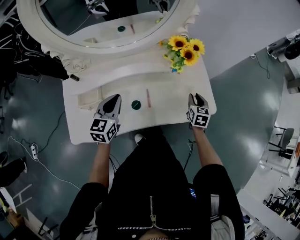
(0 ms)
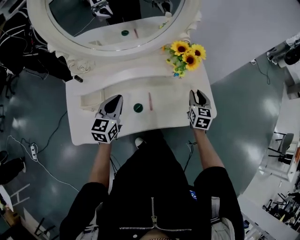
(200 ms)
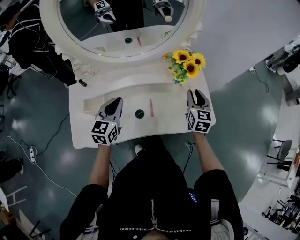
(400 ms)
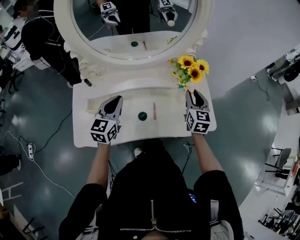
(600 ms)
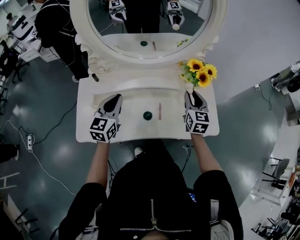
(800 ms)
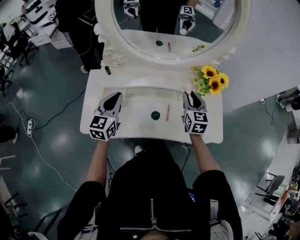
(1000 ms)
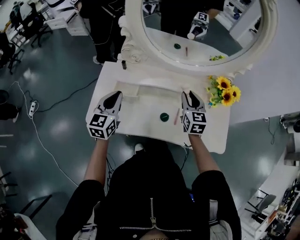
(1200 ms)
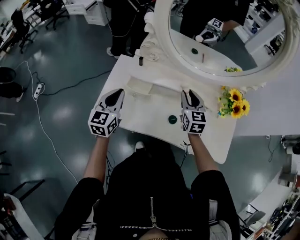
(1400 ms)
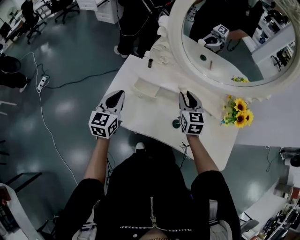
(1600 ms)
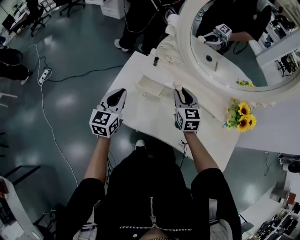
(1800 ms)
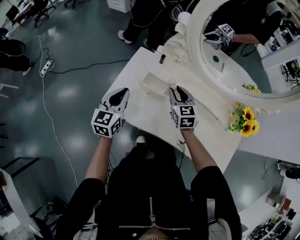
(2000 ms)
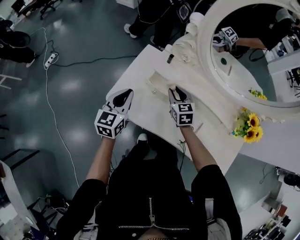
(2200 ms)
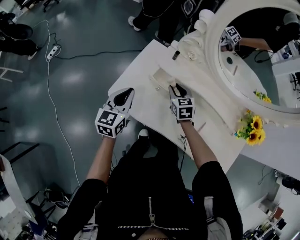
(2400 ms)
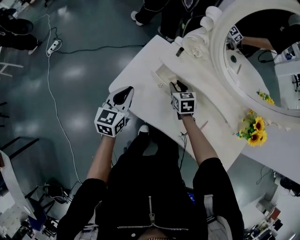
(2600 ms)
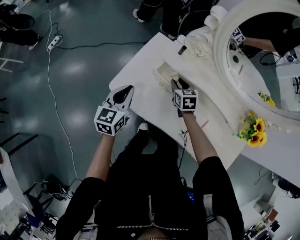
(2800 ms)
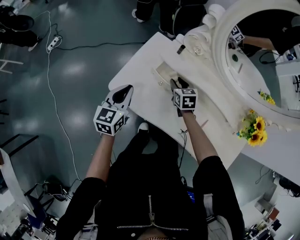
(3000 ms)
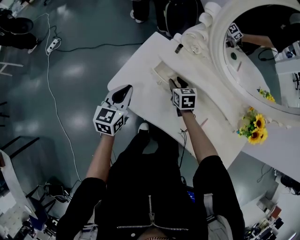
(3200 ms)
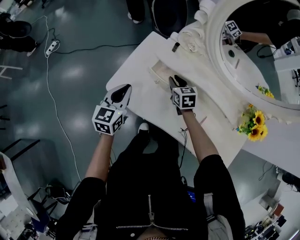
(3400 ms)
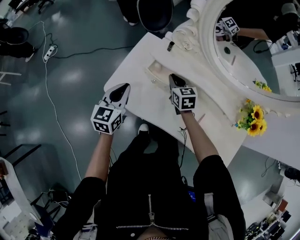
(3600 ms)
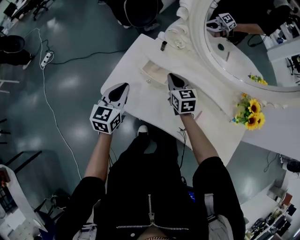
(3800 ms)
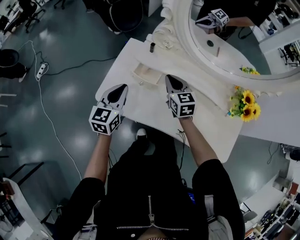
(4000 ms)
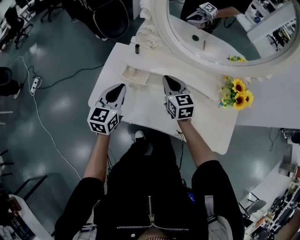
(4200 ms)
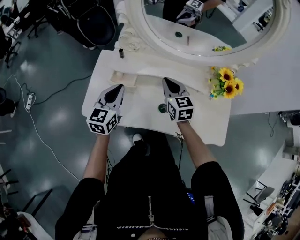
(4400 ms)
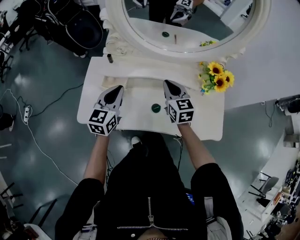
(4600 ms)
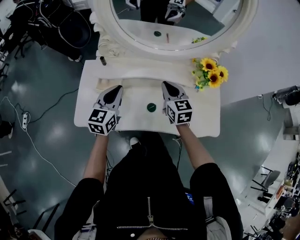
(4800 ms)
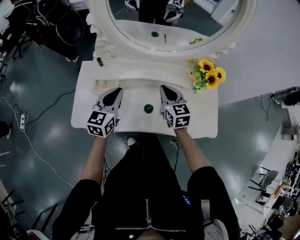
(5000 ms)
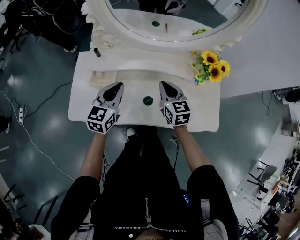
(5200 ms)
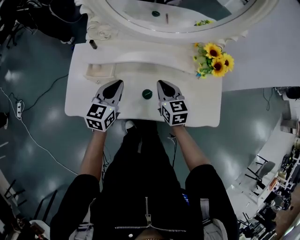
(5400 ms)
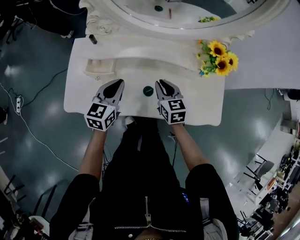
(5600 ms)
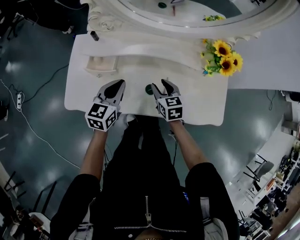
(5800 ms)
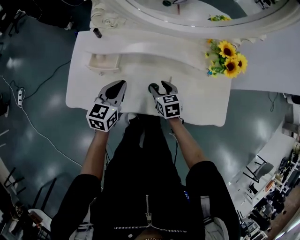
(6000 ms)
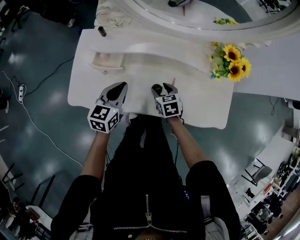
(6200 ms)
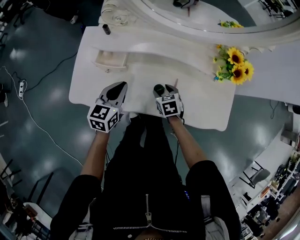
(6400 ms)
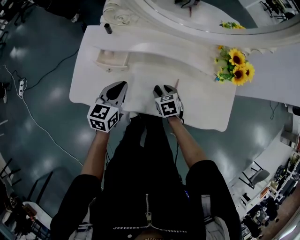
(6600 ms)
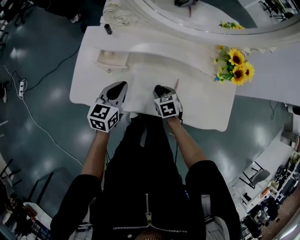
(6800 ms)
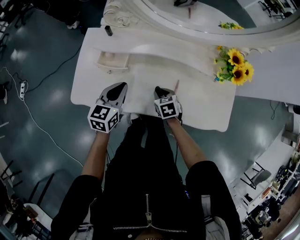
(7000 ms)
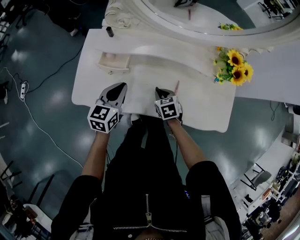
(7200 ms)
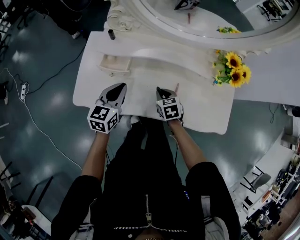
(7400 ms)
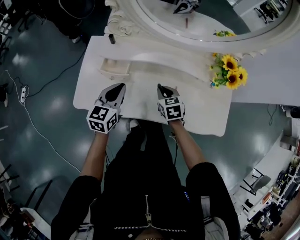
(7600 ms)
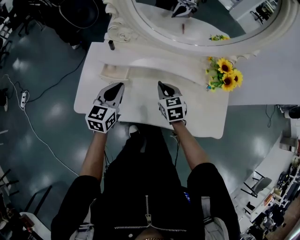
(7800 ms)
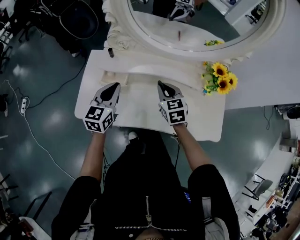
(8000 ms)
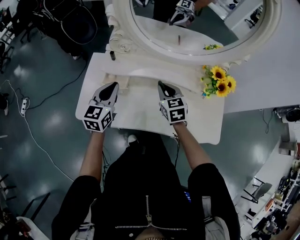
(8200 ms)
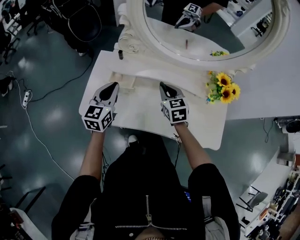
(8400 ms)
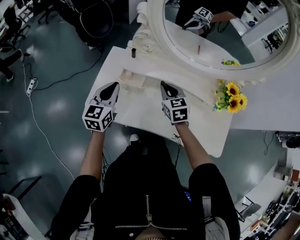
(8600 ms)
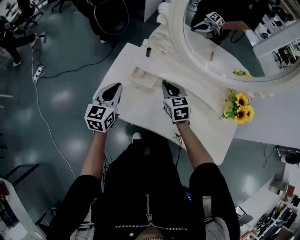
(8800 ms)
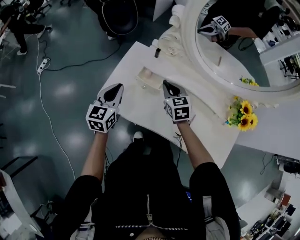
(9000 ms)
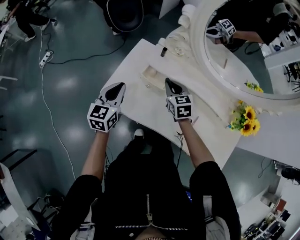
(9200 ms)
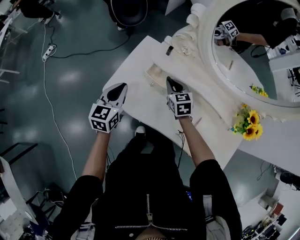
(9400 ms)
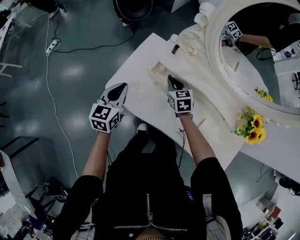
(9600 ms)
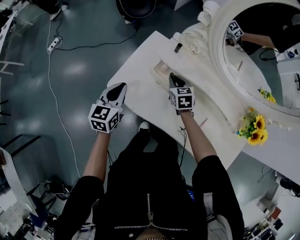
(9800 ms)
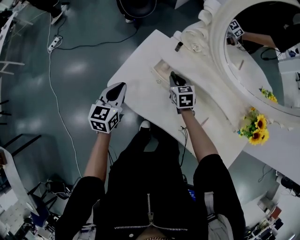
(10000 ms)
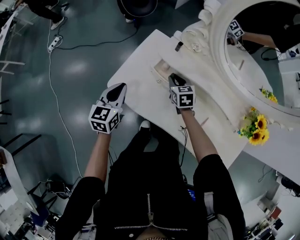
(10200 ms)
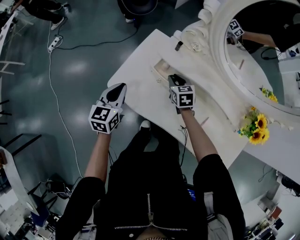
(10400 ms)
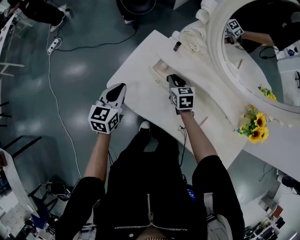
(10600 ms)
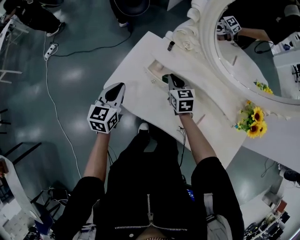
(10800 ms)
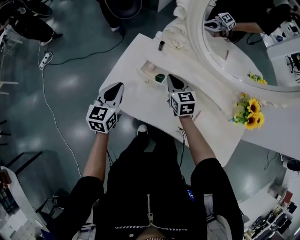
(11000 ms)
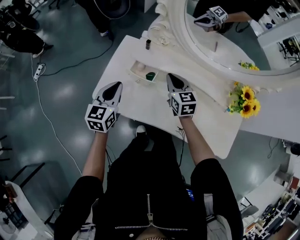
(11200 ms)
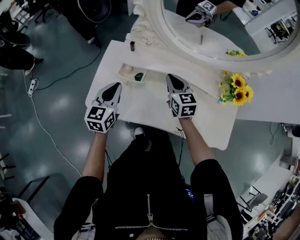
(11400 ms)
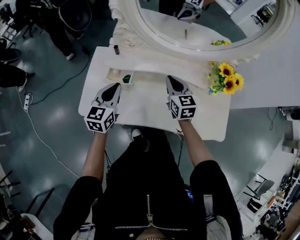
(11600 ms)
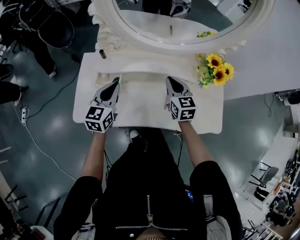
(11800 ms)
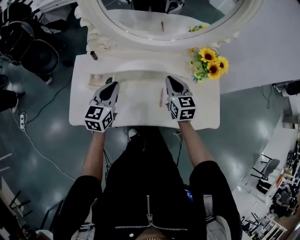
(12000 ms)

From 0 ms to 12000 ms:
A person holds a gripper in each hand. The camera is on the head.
From 0 ms to 1600 ms: The right gripper moves some 40 cm, and turns by about 50 degrees. The left gripper ends up approximately 25 cm from where it was, and turns by some 30 degrees.
From 1600 ms to 3000 ms: The right gripper heads downward, to the left and forward, covering about 20 cm, and changes its angle by approximately 30 degrees, while the left gripper heads downward and to the left, covering approximately 10 cm.
From 3000 ms to 4400 ms: The left gripper heads to the right and upward, covering some 15 cm, and swivels about 20 degrees, while the right gripper moves upward, to the right and backward, some 25 cm, swivels roughly 30 degrees, and closes.
From 4400 ms to 6000 ms: The left gripper is displaced downward and to the right by some 10 cm; the right gripper is displaced downward and backward by some 20 cm, swivels about 30 degrees, and opens.
From 6000 ms to 7600 ms: The left gripper moves roughly 5 cm. The right gripper closes.
From 7600 ms to 9000 ms: The right gripper is displaced to the left, upward and forward by some 20 cm, and changes its angle by about 20 degrees. The left gripper is displaced to the left by some 15 cm, and rotates about 20 degrees.
From 9000 ms to 10400 ms: The left gripper shifts by approximately 5 cm. The right gripper goes about 10 cm downward.
From 10400 ms to 12000 ms: The left gripper ends up approximately 25 cm from where it was, and rotates approximately 30 degrees; the right gripper shifts by approximately 35 cm, and rotates about 40 degrees.

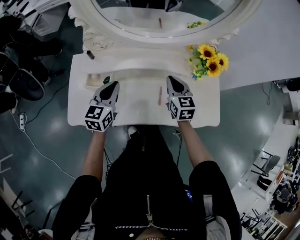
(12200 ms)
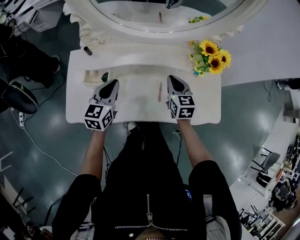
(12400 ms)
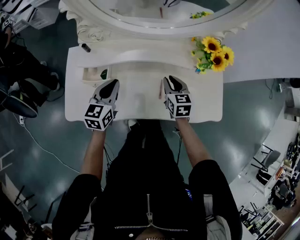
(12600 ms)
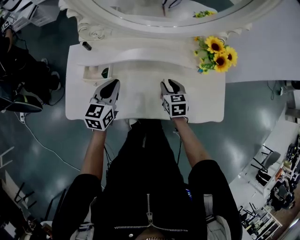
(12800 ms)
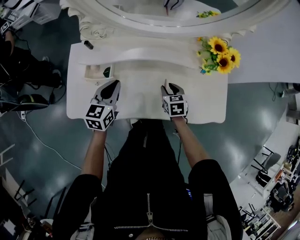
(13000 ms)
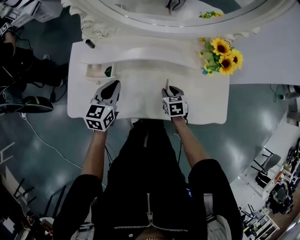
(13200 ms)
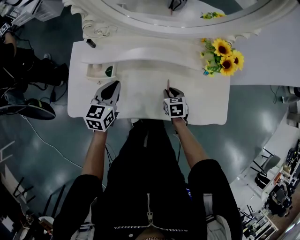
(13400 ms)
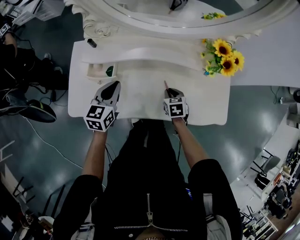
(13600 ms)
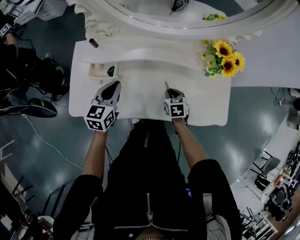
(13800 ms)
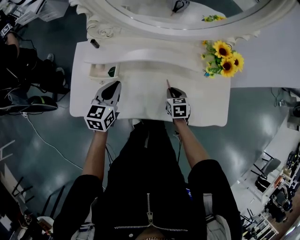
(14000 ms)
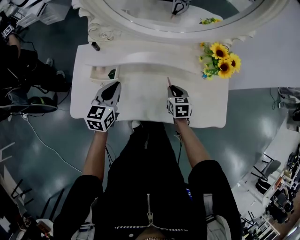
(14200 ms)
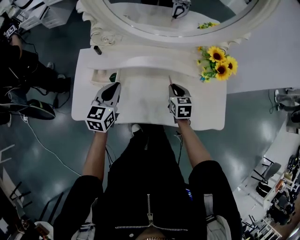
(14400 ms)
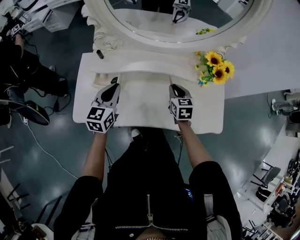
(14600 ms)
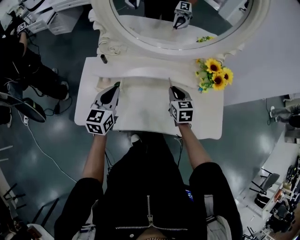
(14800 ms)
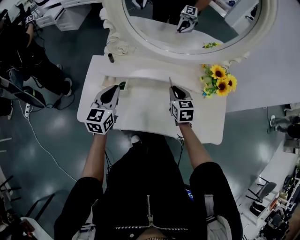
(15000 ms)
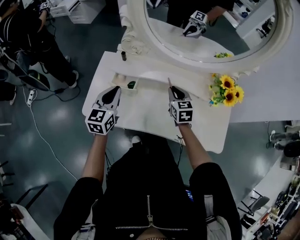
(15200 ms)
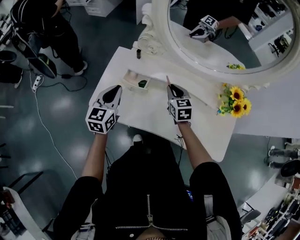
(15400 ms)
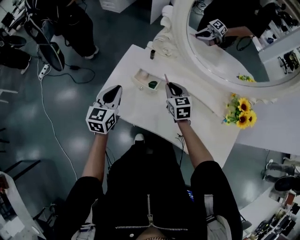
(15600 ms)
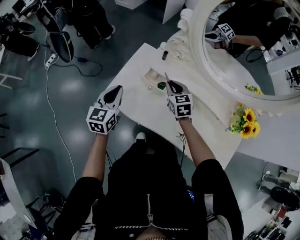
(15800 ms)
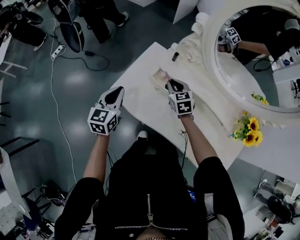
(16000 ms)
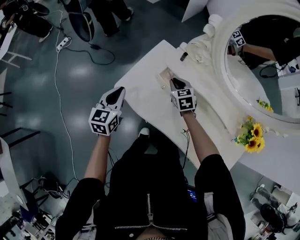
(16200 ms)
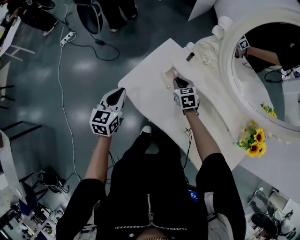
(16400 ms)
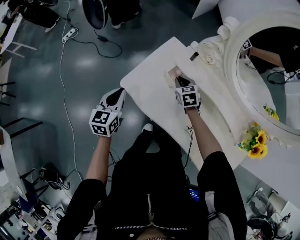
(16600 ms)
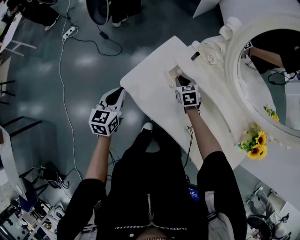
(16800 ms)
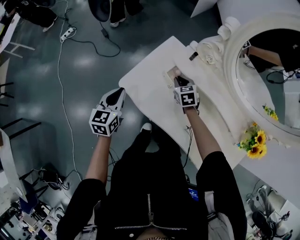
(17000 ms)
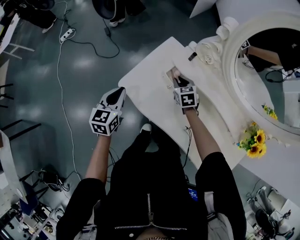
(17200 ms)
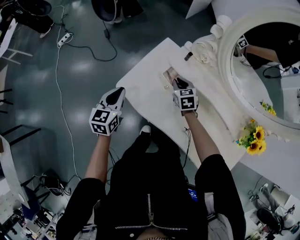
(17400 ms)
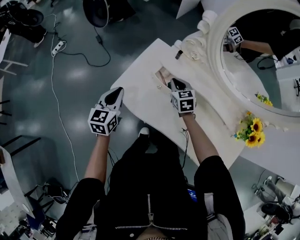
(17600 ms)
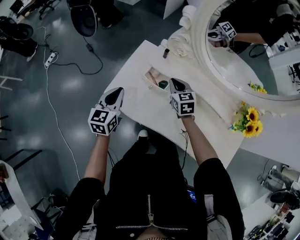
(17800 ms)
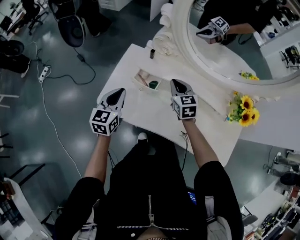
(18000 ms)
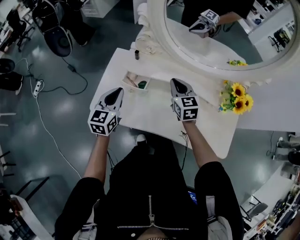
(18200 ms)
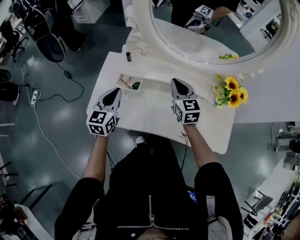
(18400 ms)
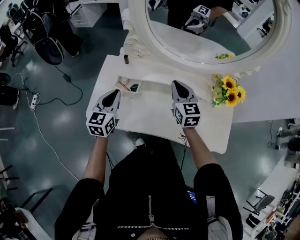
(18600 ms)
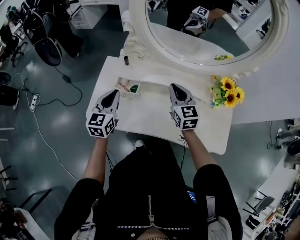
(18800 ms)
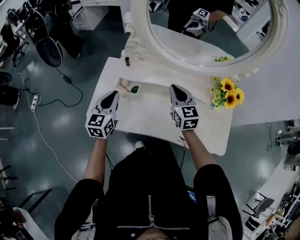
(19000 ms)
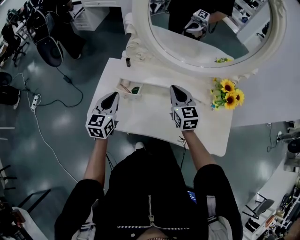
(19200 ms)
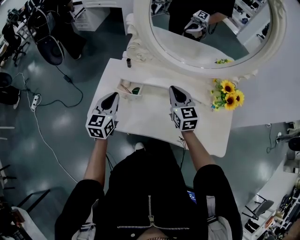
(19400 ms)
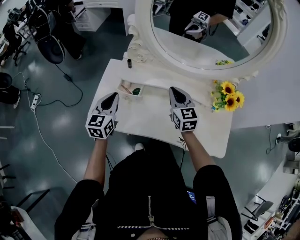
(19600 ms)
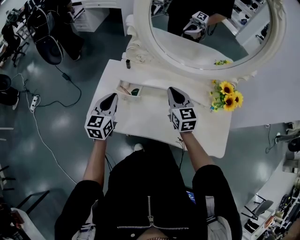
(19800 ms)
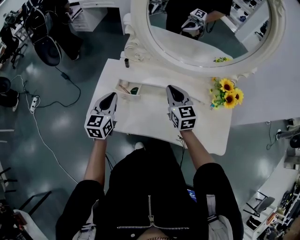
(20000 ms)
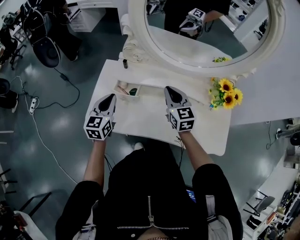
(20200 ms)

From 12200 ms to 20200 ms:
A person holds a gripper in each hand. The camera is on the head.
From 12200 ms to 13800 ms: The right gripper shifts about 20 cm downward, tips its fingers downward by roughly 30 degrees, and opens, then closes once more; the left gripper moves downward, approximately 5 cm.
From 13800 ms to 15400 ms: The right gripper is displaced upward, to the left and forward by about 25 cm, and swivels some 30 degrees, while the left gripper goes some 15 cm to the left and upward, and rotates about 20 degrees.
From 15400 ms to 17000 ms: The left gripper heads to the left, covering approximately 15 cm, and swivels some 30 degrees. The right gripper heads to the left, forward and downward, covering about 20 cm, and rotates some 30 degrees.
From 17000 ms to 18600 ms: The left gripper shifts by approximately 20 cm, and swivels roughly 30 degrees, while the right gripper shifts by approximately 30 cm, and turns by about 40 degrees.
From 18600 ms to 20200 ms: The grippers move only a little.

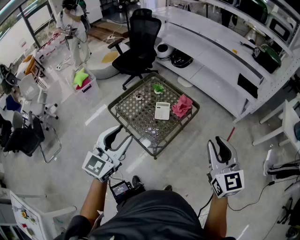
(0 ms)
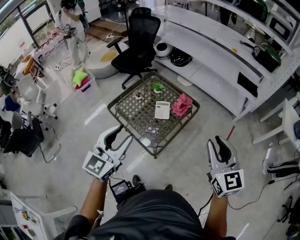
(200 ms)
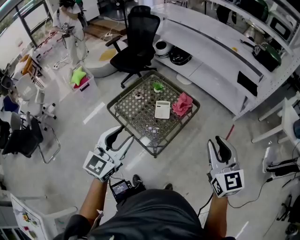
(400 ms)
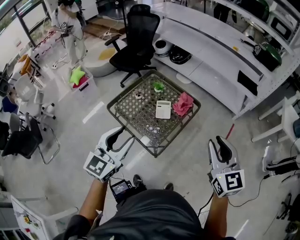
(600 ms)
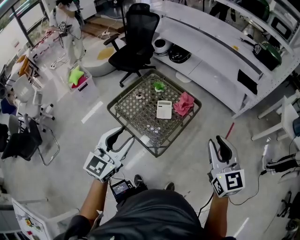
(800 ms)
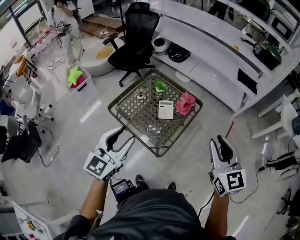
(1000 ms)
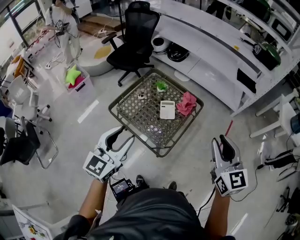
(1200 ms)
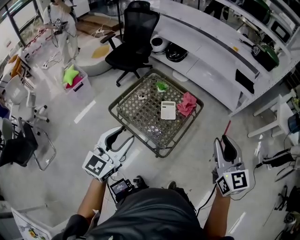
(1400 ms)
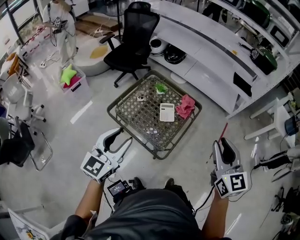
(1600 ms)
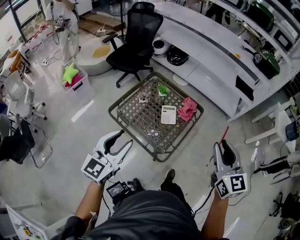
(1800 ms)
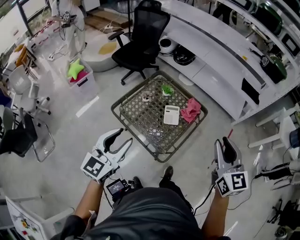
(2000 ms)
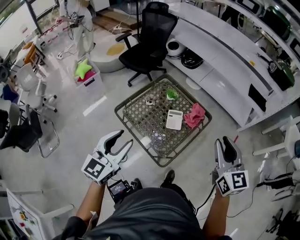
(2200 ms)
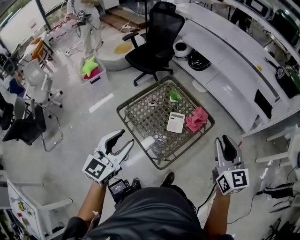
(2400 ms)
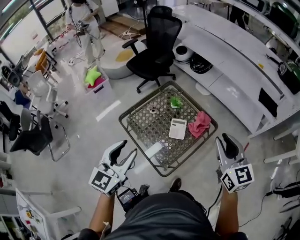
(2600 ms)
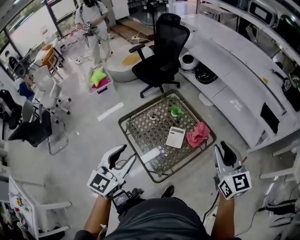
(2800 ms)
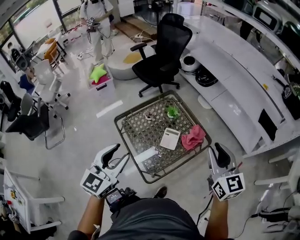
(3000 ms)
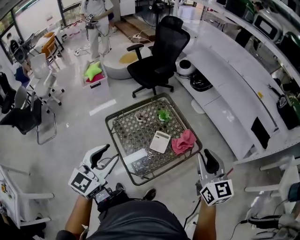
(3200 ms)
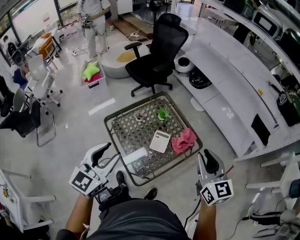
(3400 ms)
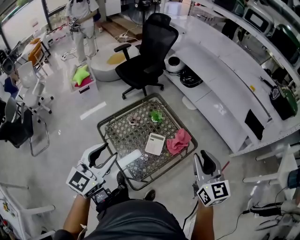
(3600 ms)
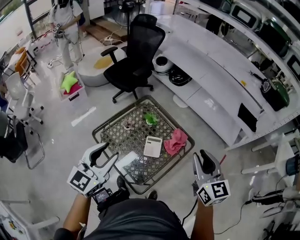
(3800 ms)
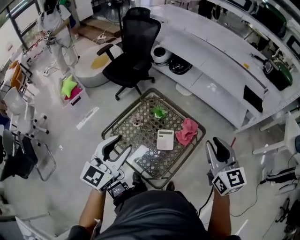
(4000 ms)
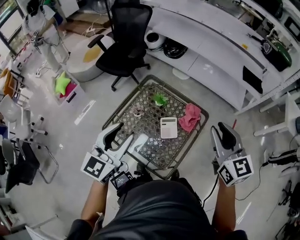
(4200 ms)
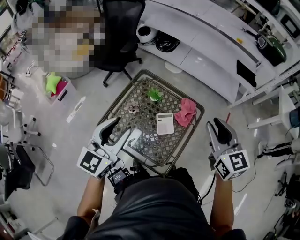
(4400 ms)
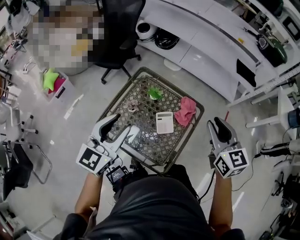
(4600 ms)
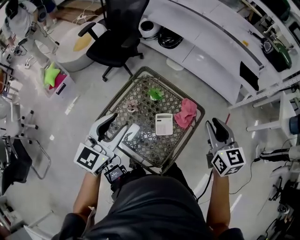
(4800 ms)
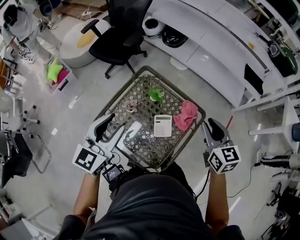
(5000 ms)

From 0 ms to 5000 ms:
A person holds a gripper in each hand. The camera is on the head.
From 0 ms to 1600 ms: Both grippers travel together to the left, roughly 10 cm.
From 1600 ms to 3400 ms: The left gripper goes some 15 cm to the right and forward, and rotates approximately 20 degrees. The right gripper moves forward, approximately 20 cm, and turns by roughly 20 degrees.
From 3400 ms to 5000 ms: The right gripper changes place by roughly 15 cm, and turns by approximately 20 degrees. The left gripper changes place by approximately 20 cm, and changes its angle by roughly 20 degrees.
